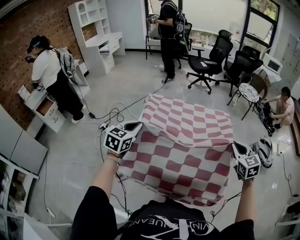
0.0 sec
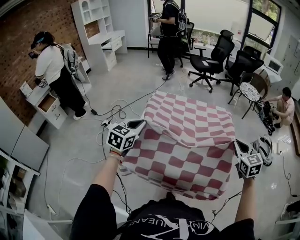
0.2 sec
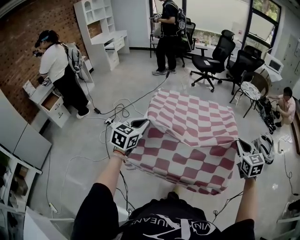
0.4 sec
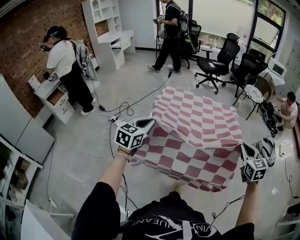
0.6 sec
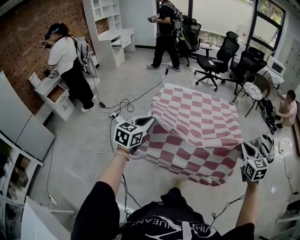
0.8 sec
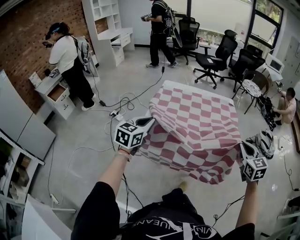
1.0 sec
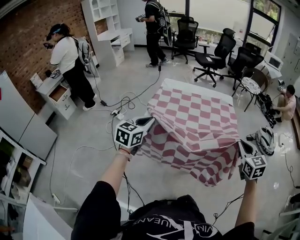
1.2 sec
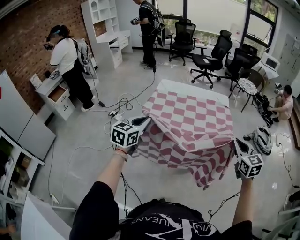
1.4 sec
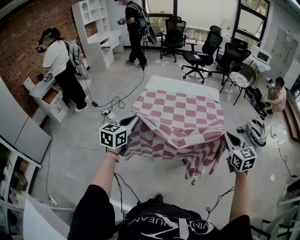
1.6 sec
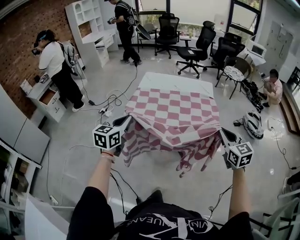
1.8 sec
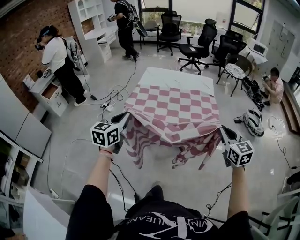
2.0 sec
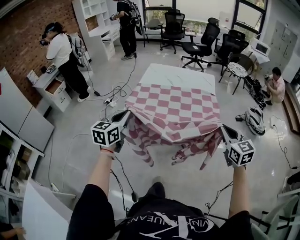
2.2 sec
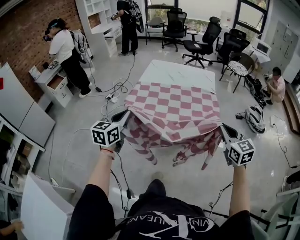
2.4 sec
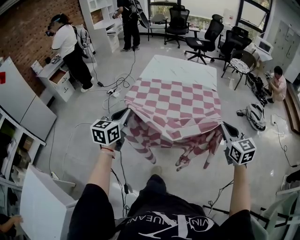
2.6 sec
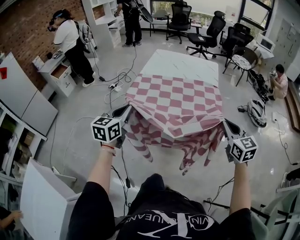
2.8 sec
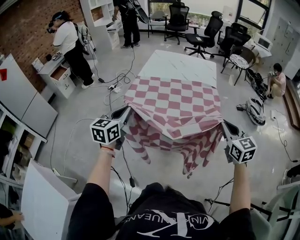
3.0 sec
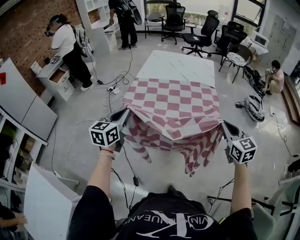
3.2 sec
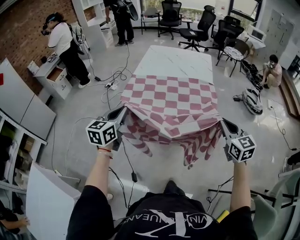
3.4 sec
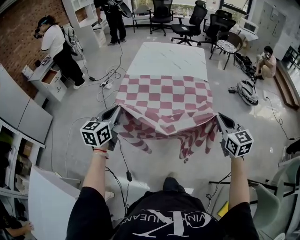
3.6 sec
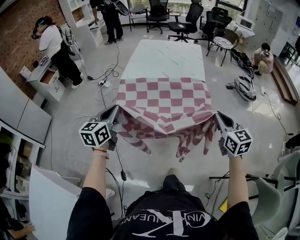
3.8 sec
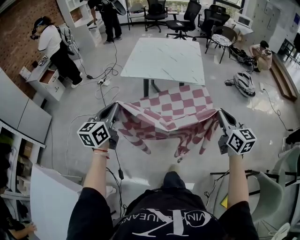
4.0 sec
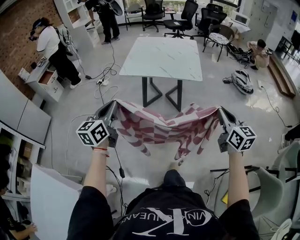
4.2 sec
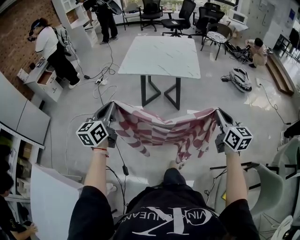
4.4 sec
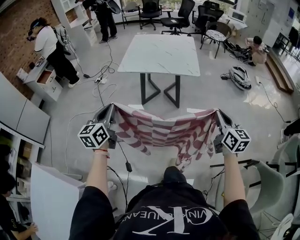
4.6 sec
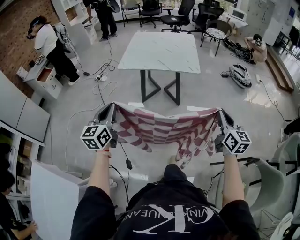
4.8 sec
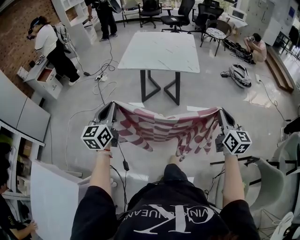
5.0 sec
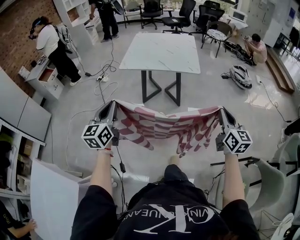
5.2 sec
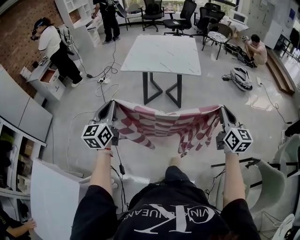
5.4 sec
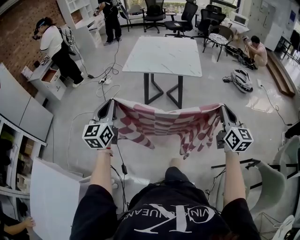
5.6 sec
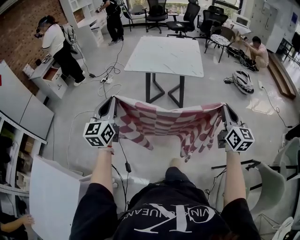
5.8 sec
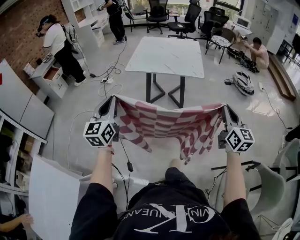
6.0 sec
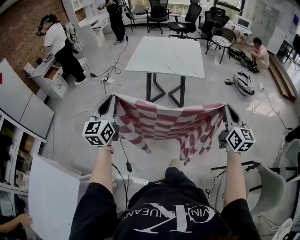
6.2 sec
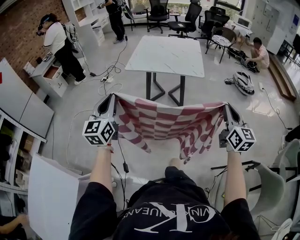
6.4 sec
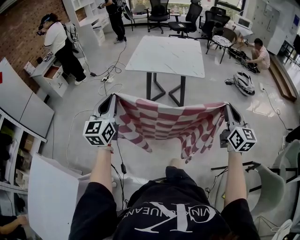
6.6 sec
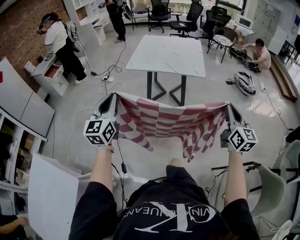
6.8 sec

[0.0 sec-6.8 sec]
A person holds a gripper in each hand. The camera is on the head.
0.0 sec to 1.4 sec: Both grippers travel together backward, some 25 cm.
1.4 sec to 2.8 sec: The grippers both shift backward by some 25 cm.
2.8 sec to 4.0 sec: The grippers both shift backward by roughly 15 cm.
4.0 sec to 5.4 sec: The two grippers go roughly 10 cm backward.
5.4 sec to 6.8 sec: The grippers move only a little.

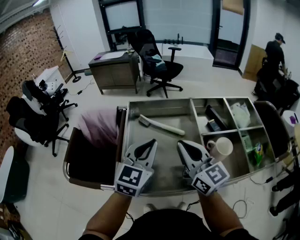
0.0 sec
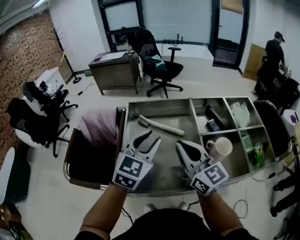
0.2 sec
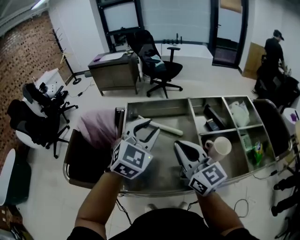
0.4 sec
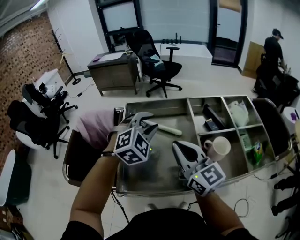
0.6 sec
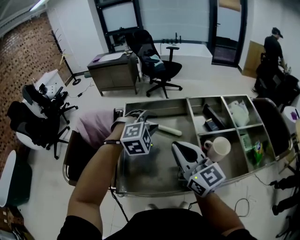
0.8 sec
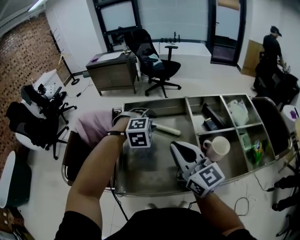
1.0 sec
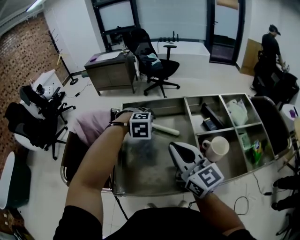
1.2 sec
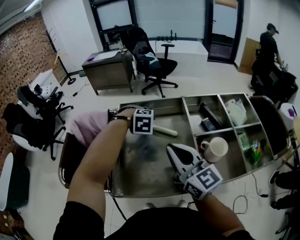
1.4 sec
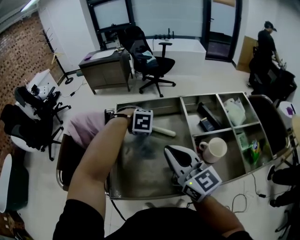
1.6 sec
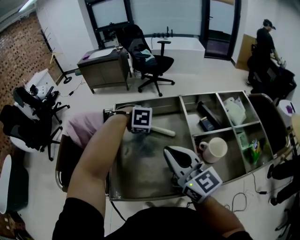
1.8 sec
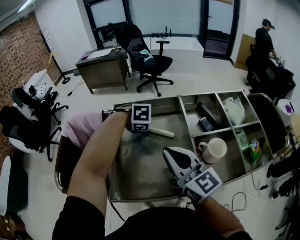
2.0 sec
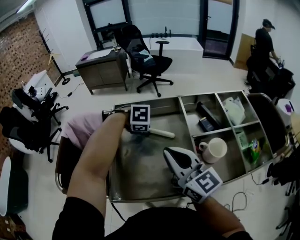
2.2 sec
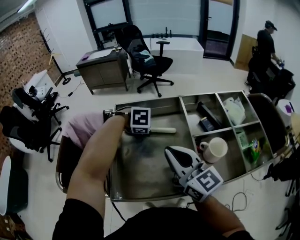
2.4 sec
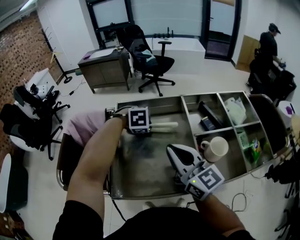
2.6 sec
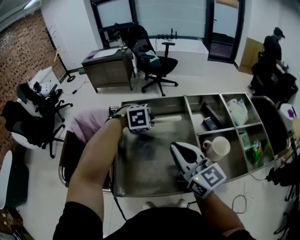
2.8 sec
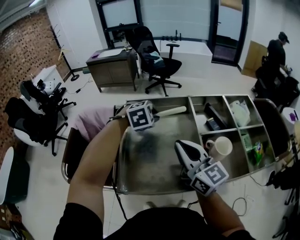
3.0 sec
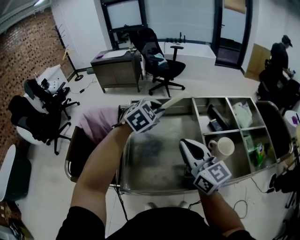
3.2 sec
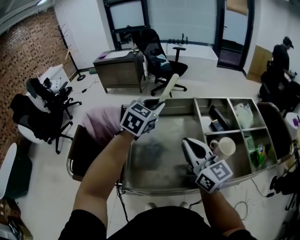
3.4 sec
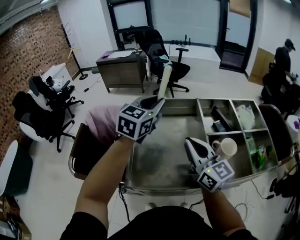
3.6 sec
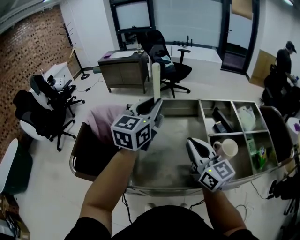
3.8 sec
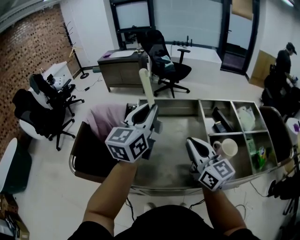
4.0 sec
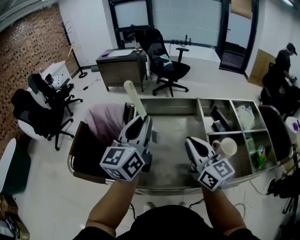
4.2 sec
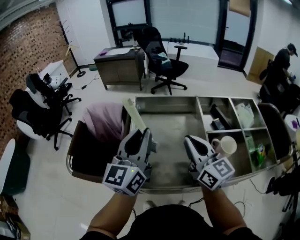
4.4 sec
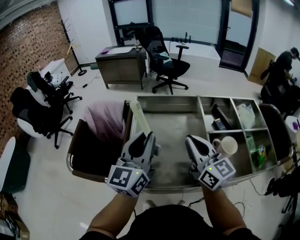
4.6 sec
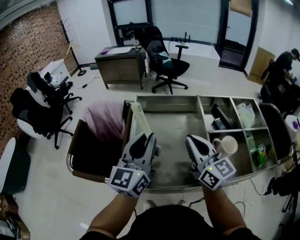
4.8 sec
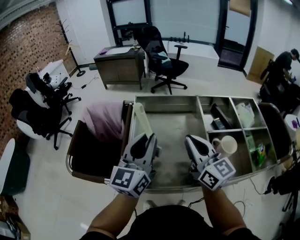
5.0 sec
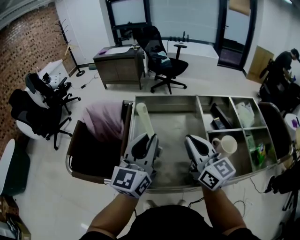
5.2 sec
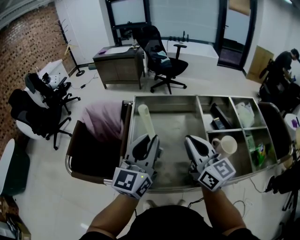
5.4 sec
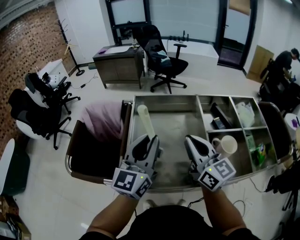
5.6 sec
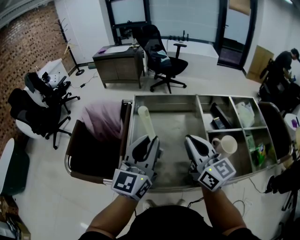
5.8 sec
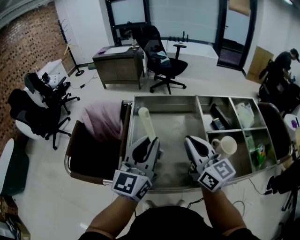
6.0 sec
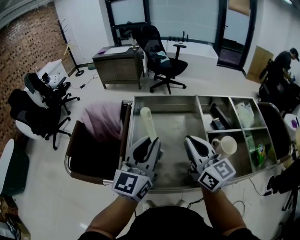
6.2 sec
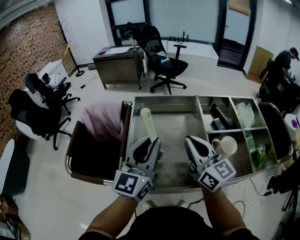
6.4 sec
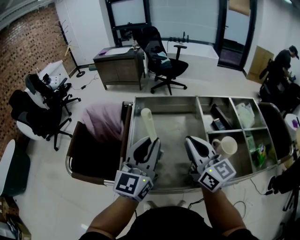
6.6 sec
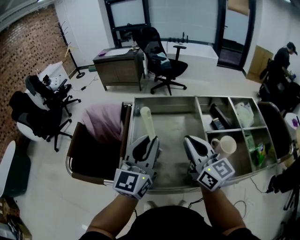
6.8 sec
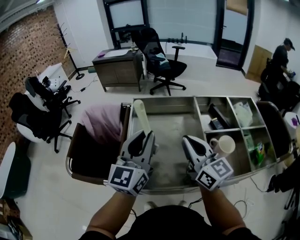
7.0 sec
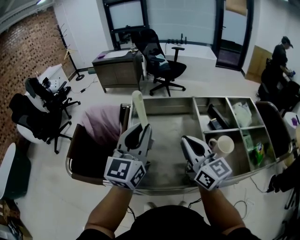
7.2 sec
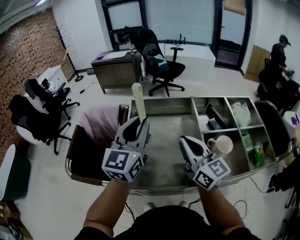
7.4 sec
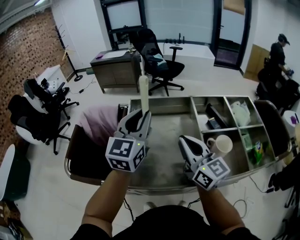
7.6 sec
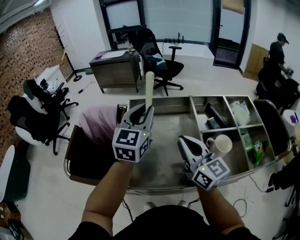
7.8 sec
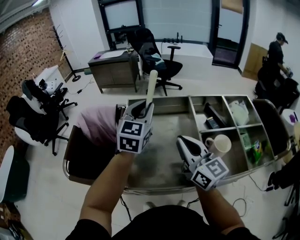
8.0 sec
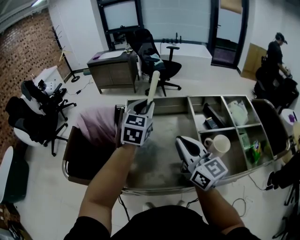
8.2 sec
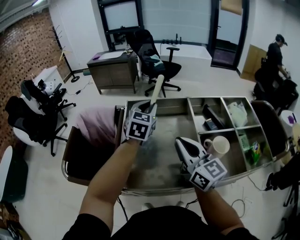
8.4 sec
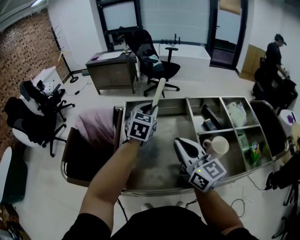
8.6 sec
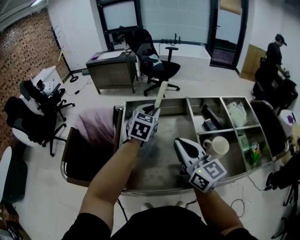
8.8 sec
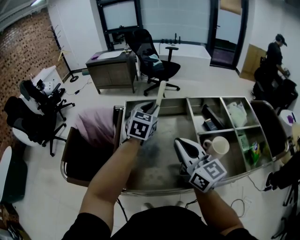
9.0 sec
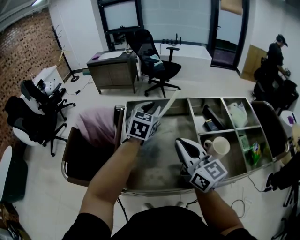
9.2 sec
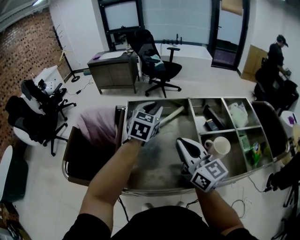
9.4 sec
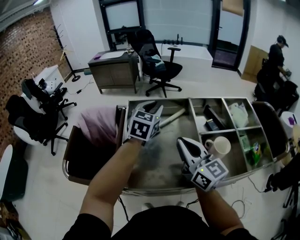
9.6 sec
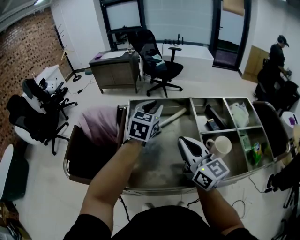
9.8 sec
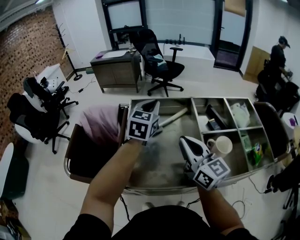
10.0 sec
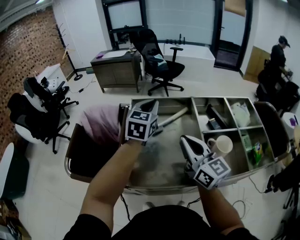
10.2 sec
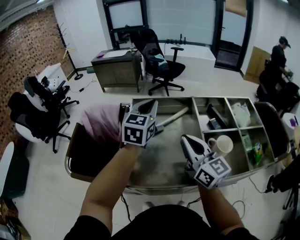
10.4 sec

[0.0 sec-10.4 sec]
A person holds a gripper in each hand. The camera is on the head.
0.0 sec to 1.4 sec: The left gripper heads forward and downward, covering approximately 20 cm, points its fingers some 60 degrees further downward, and opens.
1.4 sec to 3.0 sec: The left gripper is displaced upward by approximately 5 cm, rotates some 20 degrees, and closes its fingers.
3.0 sec to 4.4 sec: The left gripper travels backward, upward and to the left by about 25 cm, and angles its fingers upward, by roughly 70 degrees.
4.4 sec to 6.0 sec: The grippers make only small movements.
6.0 sec to 7.4 sec: The left gripper travels forward by roughly 5 cm.
7.4 sec to 9.0 sec: The left gripper is displaced forward, downward and to the right by approximately 20 cm, and changes its angle by about 30 degrees.
9.0 sec to 10.4 sec: The left gripper moves upward, roughly 5 cm, and closes its fingers.

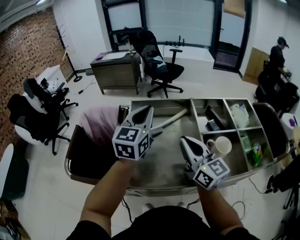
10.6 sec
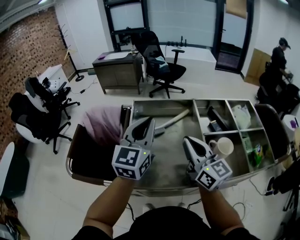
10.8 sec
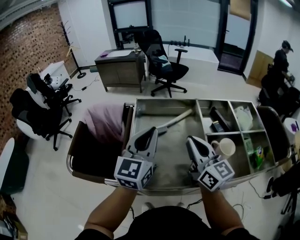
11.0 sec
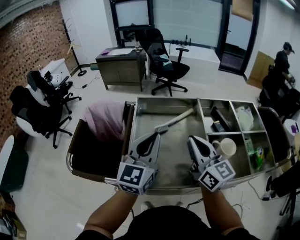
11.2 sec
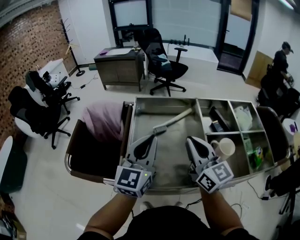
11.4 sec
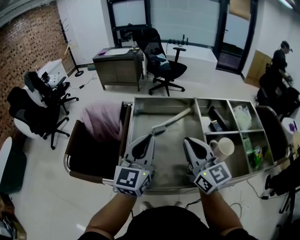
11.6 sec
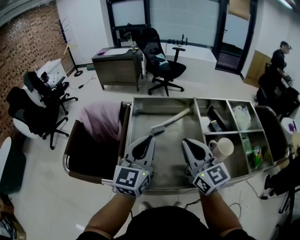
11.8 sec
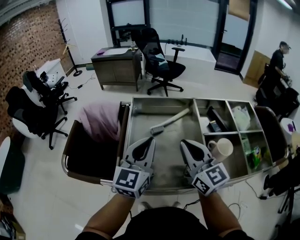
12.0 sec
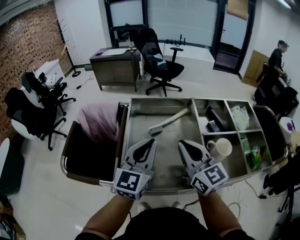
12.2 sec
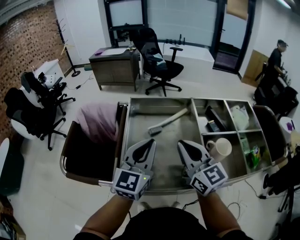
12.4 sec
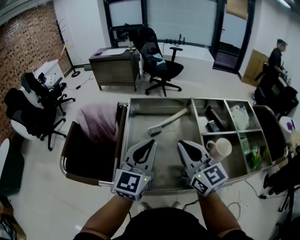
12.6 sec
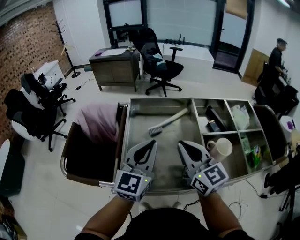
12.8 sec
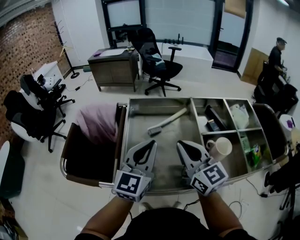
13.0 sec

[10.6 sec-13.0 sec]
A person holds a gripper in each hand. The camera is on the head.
10.6 sec to 11.8 sec: The left gripper heads backward, covering approximately 10 cm.
11.8 sec to 13.0 sec: There are only small adjustments of the grippers.

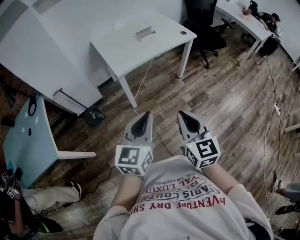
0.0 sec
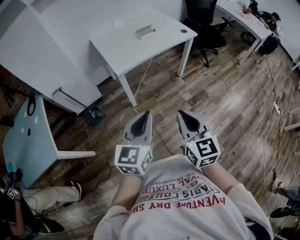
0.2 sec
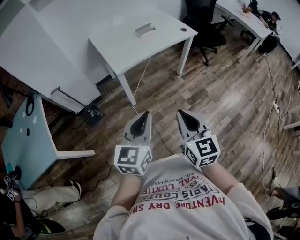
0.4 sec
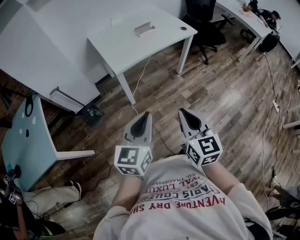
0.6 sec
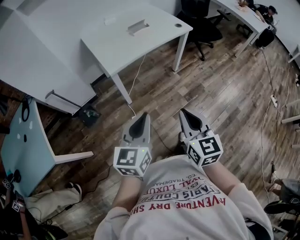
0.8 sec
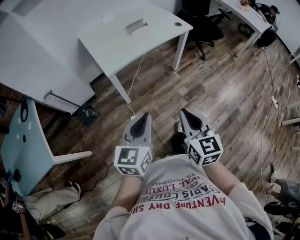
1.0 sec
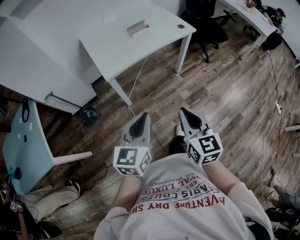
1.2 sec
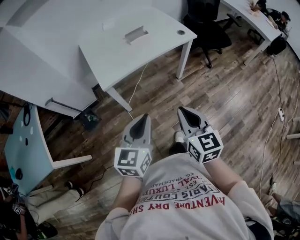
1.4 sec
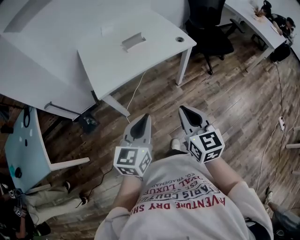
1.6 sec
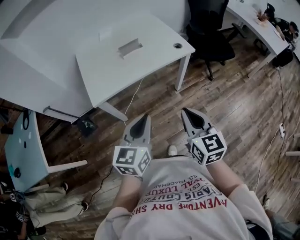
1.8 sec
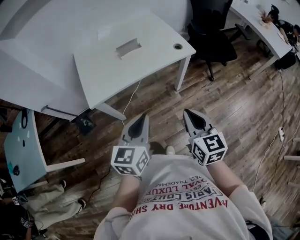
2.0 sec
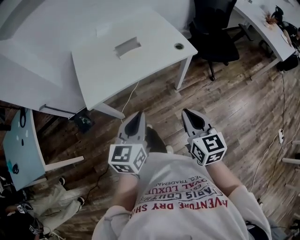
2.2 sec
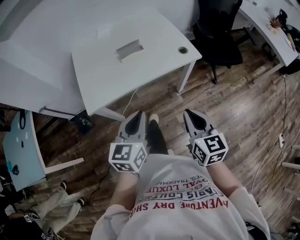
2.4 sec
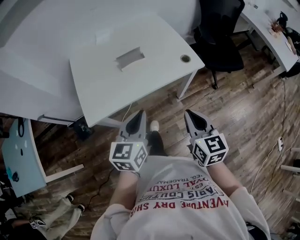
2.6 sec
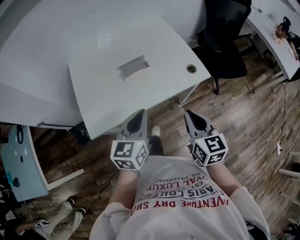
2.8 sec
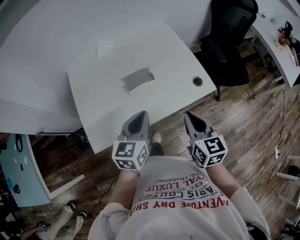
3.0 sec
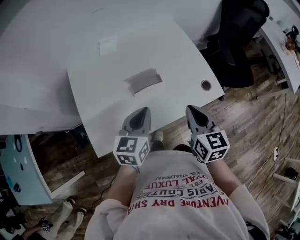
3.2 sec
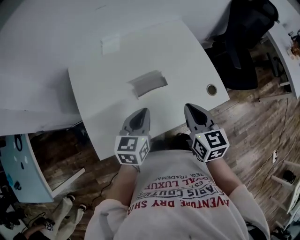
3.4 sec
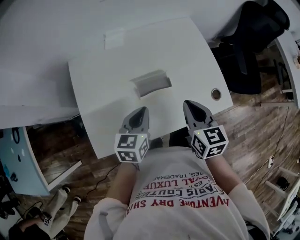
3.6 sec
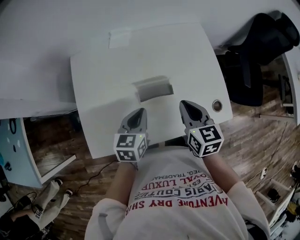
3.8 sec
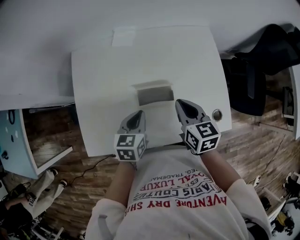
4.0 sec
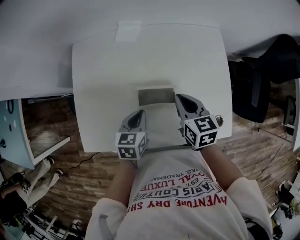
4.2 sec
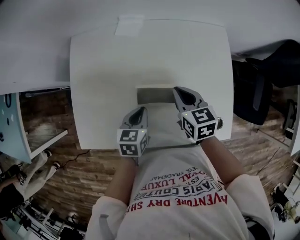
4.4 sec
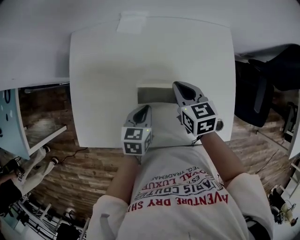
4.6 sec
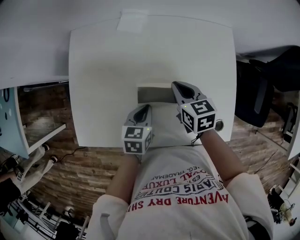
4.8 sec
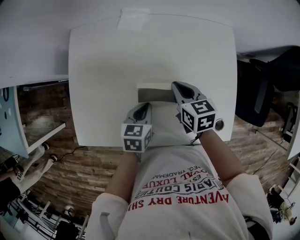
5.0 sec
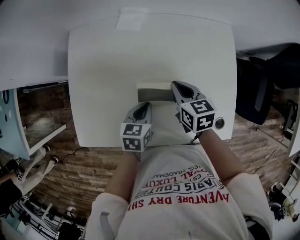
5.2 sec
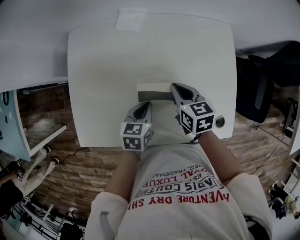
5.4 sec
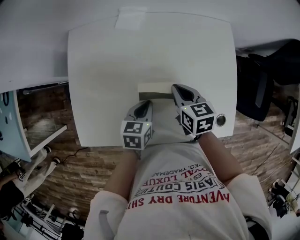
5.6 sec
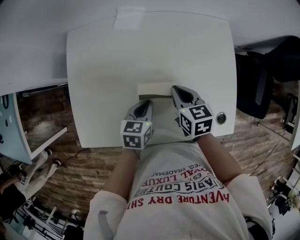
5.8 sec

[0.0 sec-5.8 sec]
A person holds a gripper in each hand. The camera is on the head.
0.0 sec to 1.4 sec: The grippers both shift forward and to the right by roughly 15 cm.
1.4 sec to 2.8 sec: Both grippers move forward, approximately 30 cm.
2.8 sec to 4.4 sec: The right gripper ends up roughly 30 cm from where it was, and changes its angle by some 30 degrees. Meanwhile the left gripper travels downward by some 15 cm, and rotates roughly 30 degrees.
4.4 sec to 5.8 sec: The grippers stay close to where they were, moving slightly.
